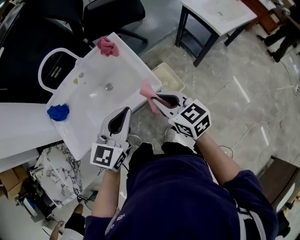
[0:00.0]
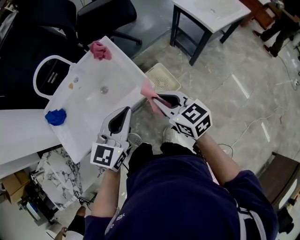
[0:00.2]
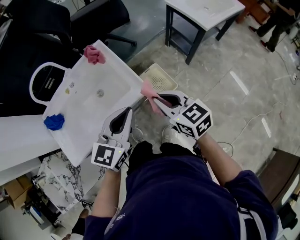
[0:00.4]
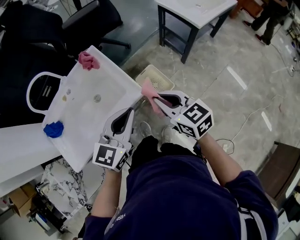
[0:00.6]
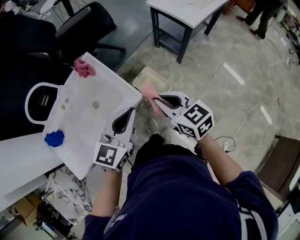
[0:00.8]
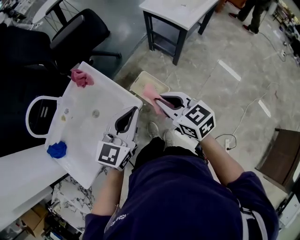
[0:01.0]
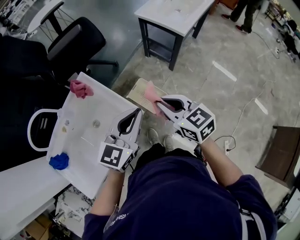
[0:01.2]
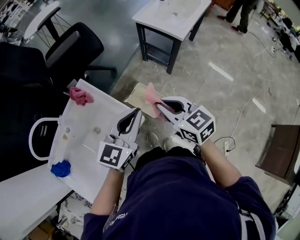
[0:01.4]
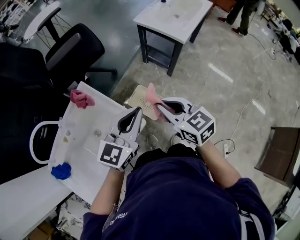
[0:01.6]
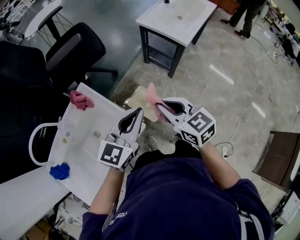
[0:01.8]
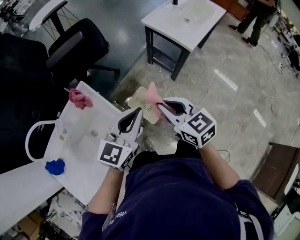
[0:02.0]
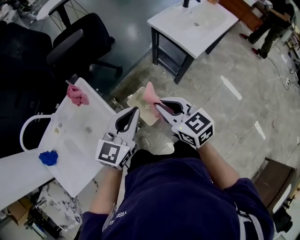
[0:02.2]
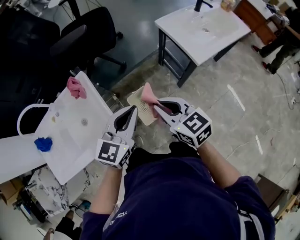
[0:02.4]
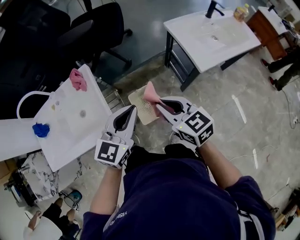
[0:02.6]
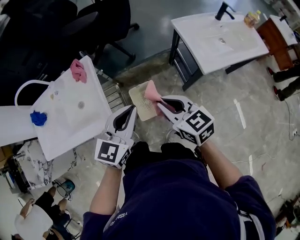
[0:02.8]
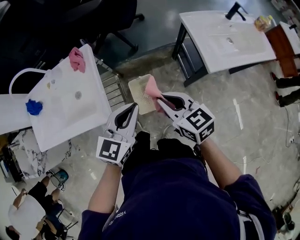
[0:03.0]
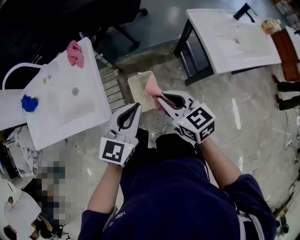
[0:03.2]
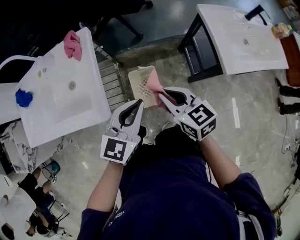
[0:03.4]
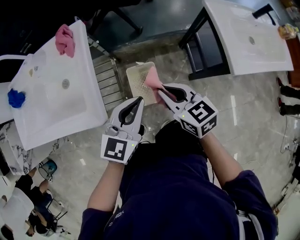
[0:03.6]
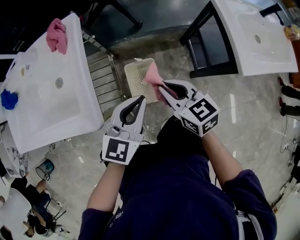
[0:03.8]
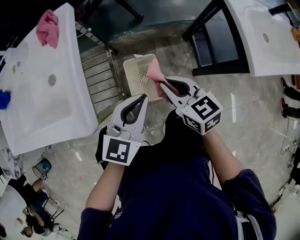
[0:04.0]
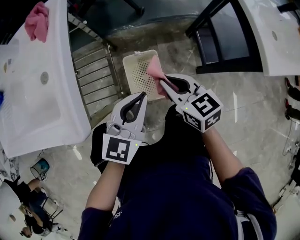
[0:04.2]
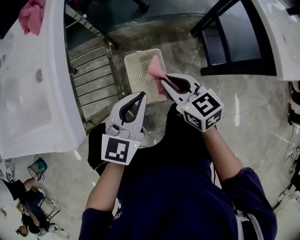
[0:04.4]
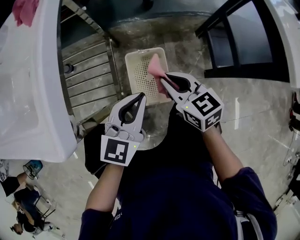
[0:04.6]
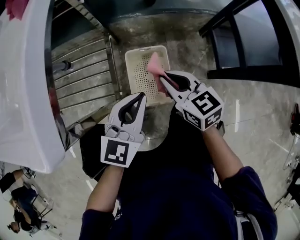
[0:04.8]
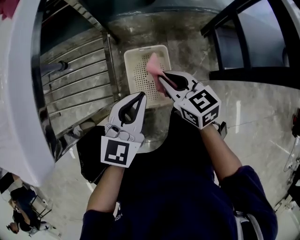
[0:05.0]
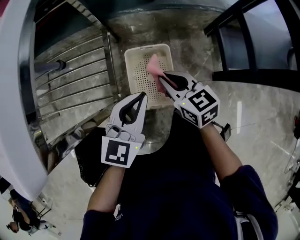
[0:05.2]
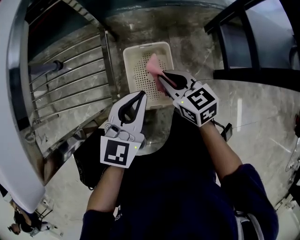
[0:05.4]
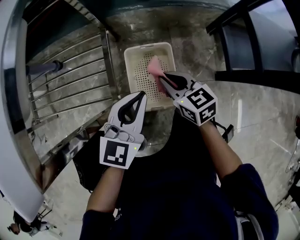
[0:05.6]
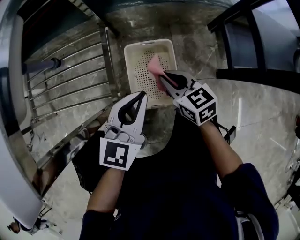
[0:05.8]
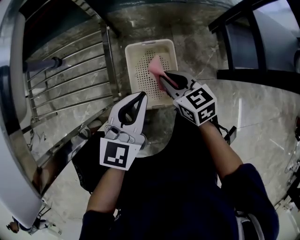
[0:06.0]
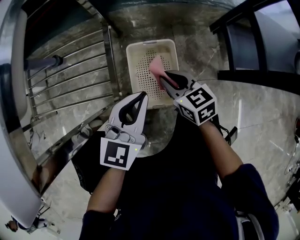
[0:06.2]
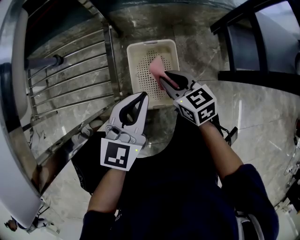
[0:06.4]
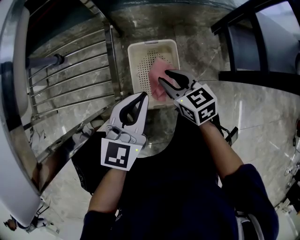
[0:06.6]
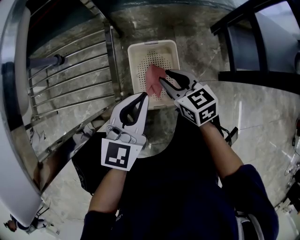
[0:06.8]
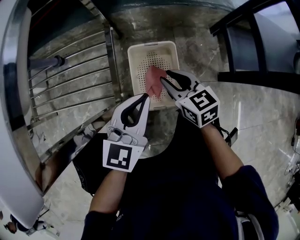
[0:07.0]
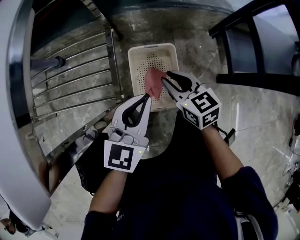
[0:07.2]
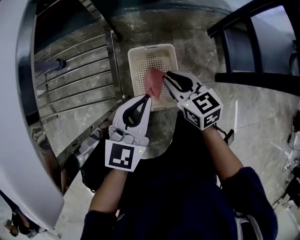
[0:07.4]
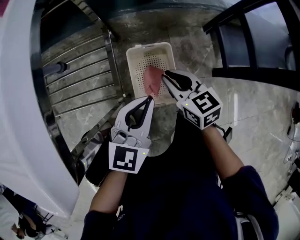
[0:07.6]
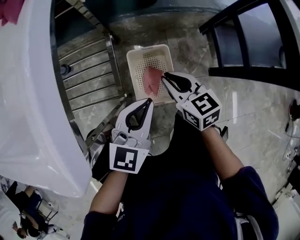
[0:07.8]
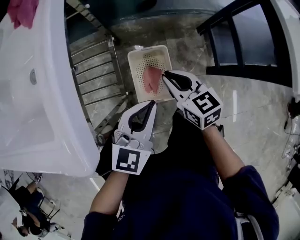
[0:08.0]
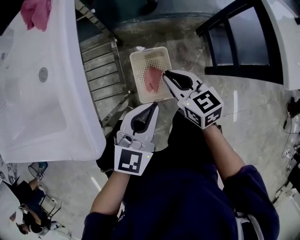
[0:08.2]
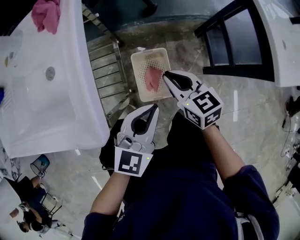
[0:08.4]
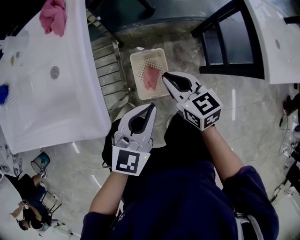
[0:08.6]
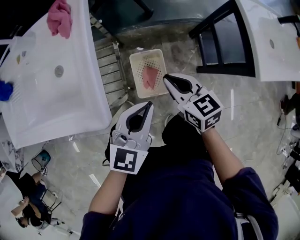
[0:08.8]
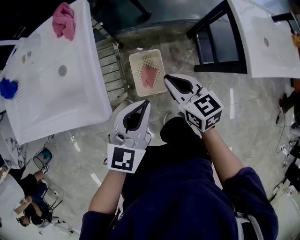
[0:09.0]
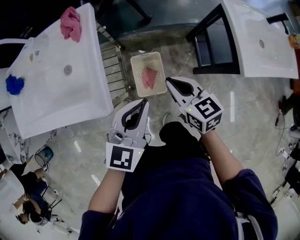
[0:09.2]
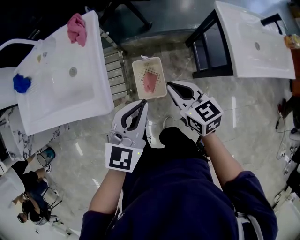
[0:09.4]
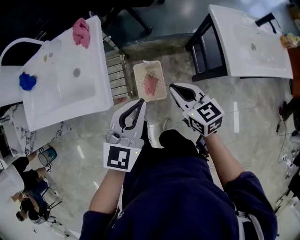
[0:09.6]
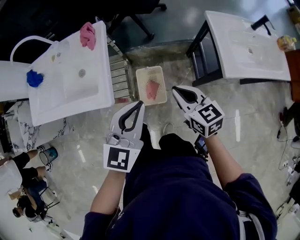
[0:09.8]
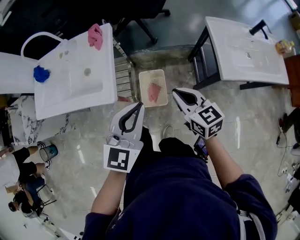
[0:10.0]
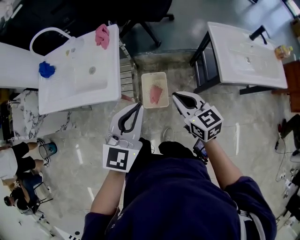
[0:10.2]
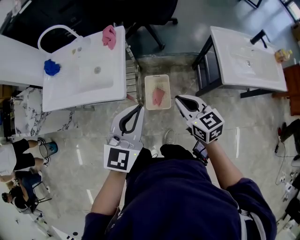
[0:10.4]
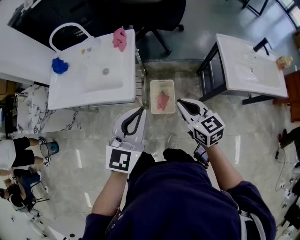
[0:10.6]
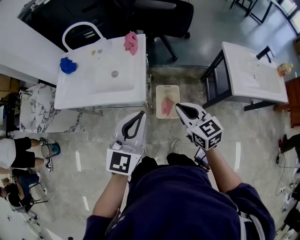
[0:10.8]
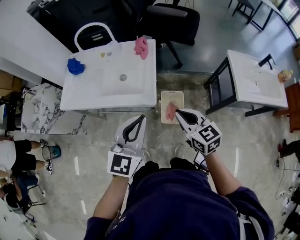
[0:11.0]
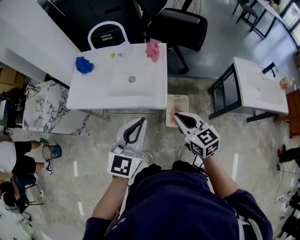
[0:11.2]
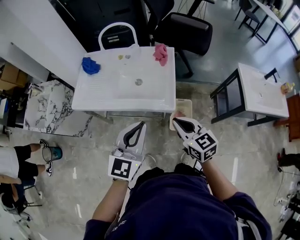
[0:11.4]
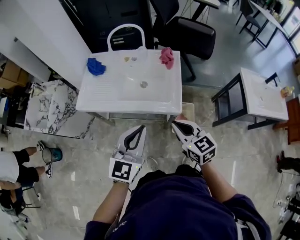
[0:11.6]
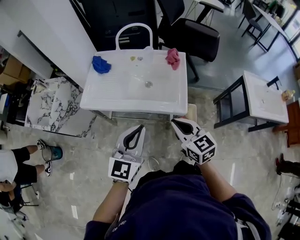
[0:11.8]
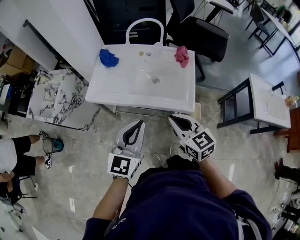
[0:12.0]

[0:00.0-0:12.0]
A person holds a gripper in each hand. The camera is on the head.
0:00.0 to 0:01.6: The right gripper moves to the right and forward, some 15 cm, and rotates roughly 20 degrees. Meanwhile the left gripper moves forward and to the right, some 20 cm, and turns by approximately 30 degrees.
0:01.6 to 0:03.0: The right gripper moves some 20 cm, and rotates approximately 40 degrees; the left gripper shifts by roughly 15 cm, and turns by about 40 degrees.
0:03.0 to 0:04.4: Both grippers travel together downward, about 35 cm.
0:04.4 to 0:06.0: The grippers both shift downward by approximately 20 cm.
0:06.0 to 0:07.6: The right gripper moves upward, roughly 5 cm.
0:07.6 to 0:09.0: The grippers both shift upward by about 30 cm.
0:09.0 to 0:10.4: The grippers both shift upward and backward by approximately 25 cm.
0:10.4 to 0:12.0: Both grippers travel together to the left, roughly 40 cm.

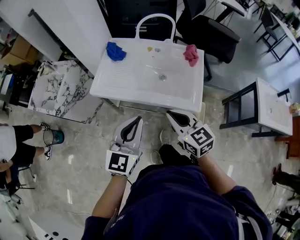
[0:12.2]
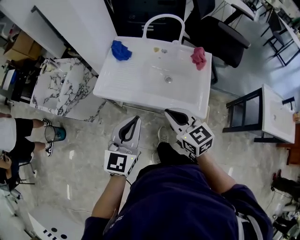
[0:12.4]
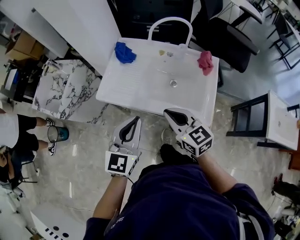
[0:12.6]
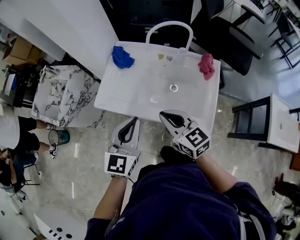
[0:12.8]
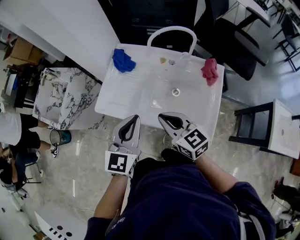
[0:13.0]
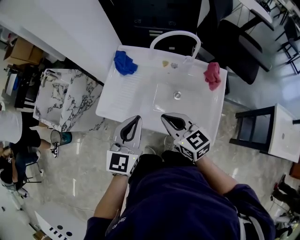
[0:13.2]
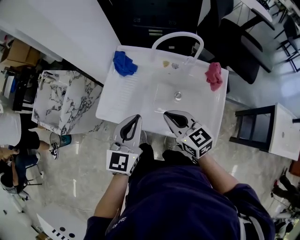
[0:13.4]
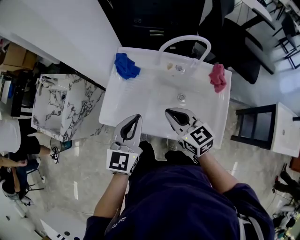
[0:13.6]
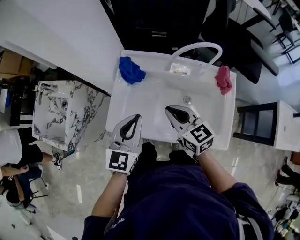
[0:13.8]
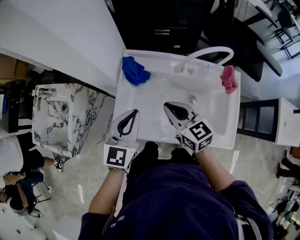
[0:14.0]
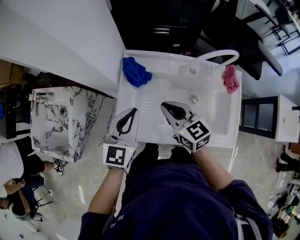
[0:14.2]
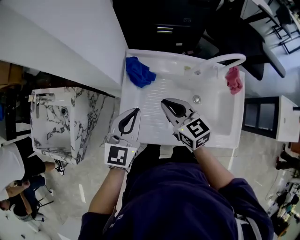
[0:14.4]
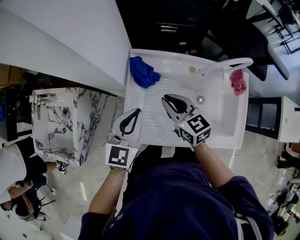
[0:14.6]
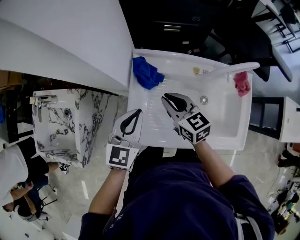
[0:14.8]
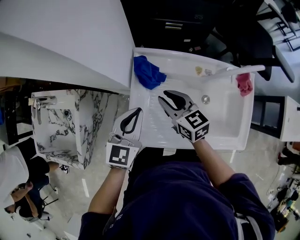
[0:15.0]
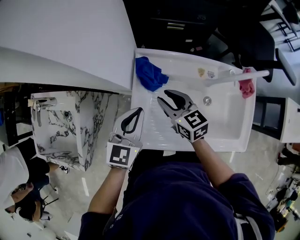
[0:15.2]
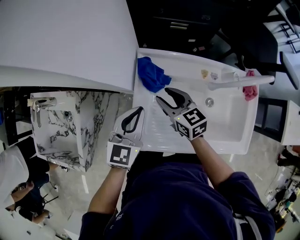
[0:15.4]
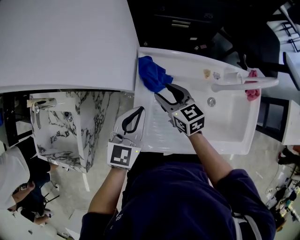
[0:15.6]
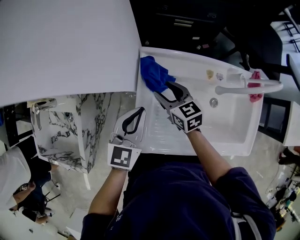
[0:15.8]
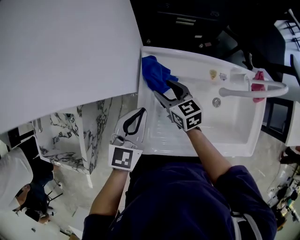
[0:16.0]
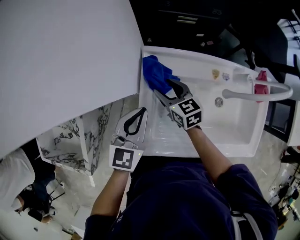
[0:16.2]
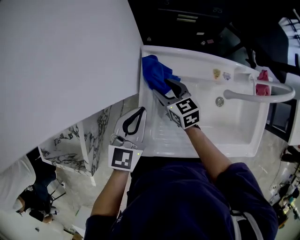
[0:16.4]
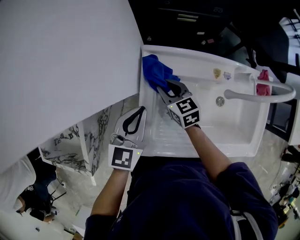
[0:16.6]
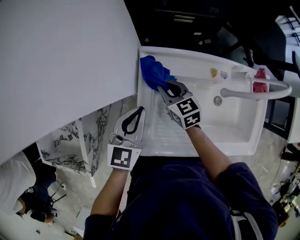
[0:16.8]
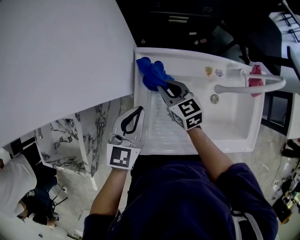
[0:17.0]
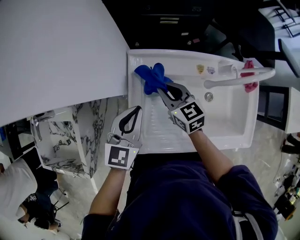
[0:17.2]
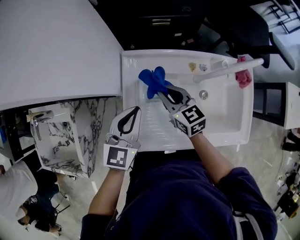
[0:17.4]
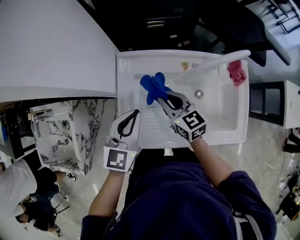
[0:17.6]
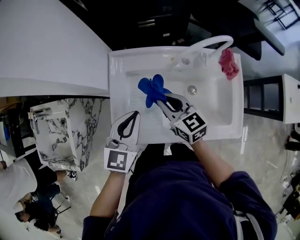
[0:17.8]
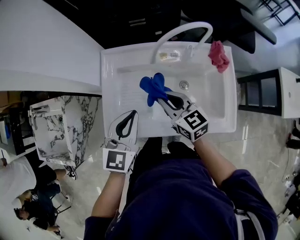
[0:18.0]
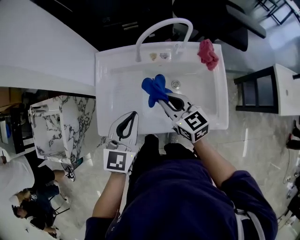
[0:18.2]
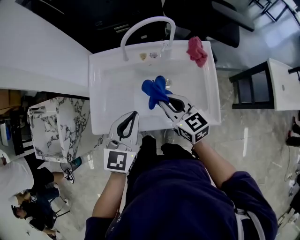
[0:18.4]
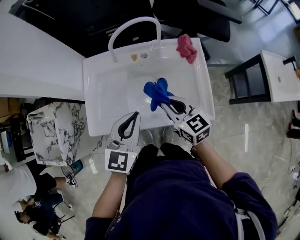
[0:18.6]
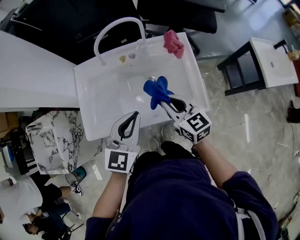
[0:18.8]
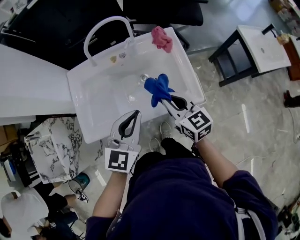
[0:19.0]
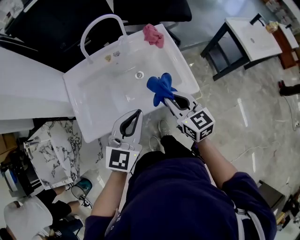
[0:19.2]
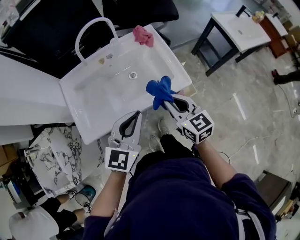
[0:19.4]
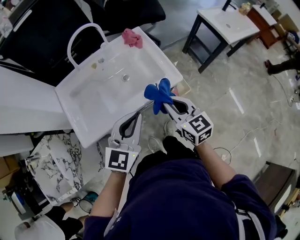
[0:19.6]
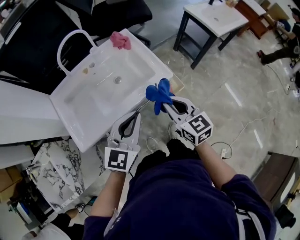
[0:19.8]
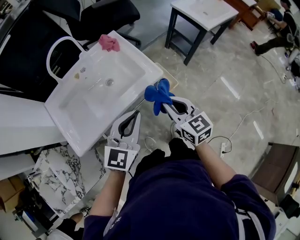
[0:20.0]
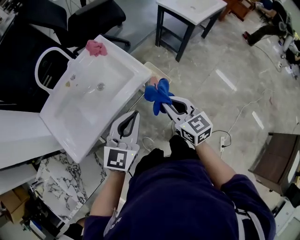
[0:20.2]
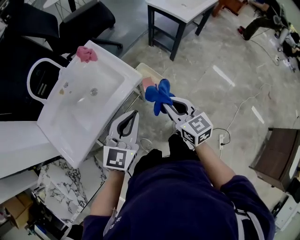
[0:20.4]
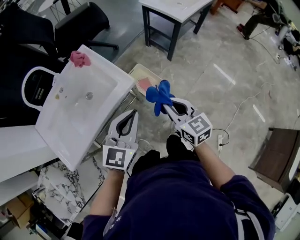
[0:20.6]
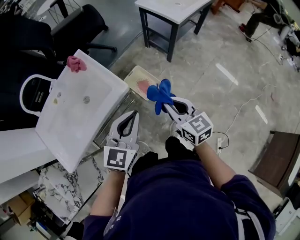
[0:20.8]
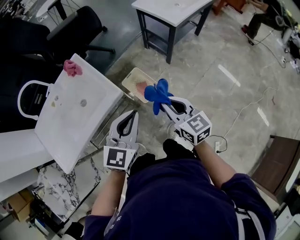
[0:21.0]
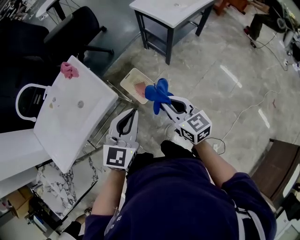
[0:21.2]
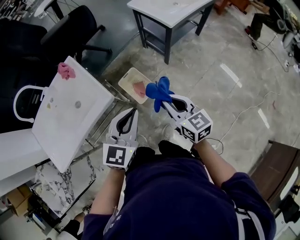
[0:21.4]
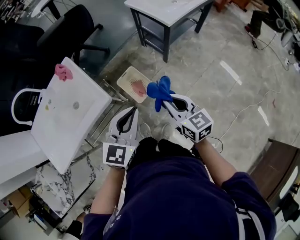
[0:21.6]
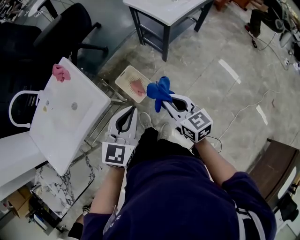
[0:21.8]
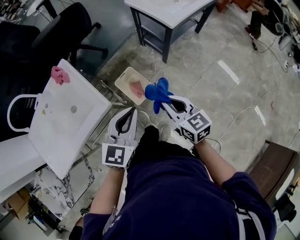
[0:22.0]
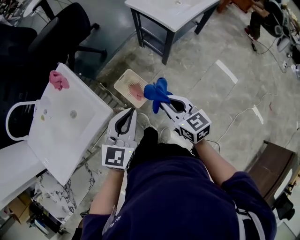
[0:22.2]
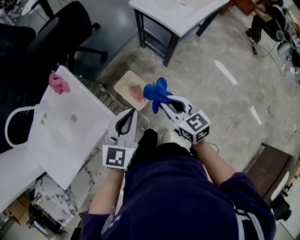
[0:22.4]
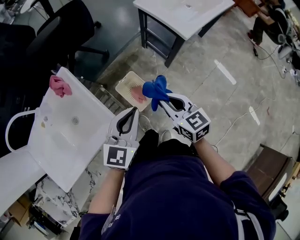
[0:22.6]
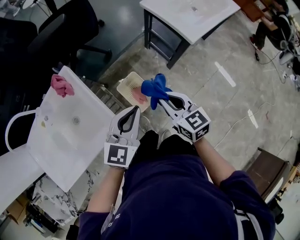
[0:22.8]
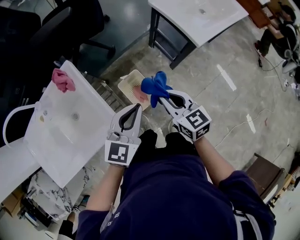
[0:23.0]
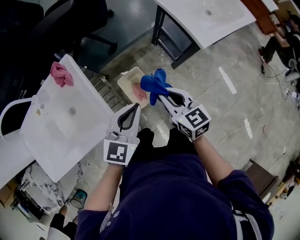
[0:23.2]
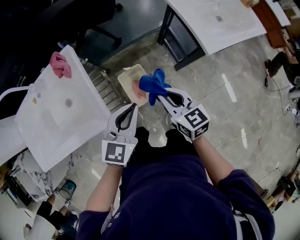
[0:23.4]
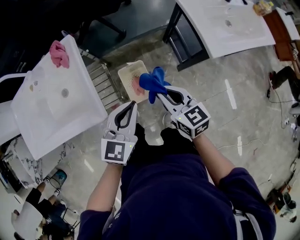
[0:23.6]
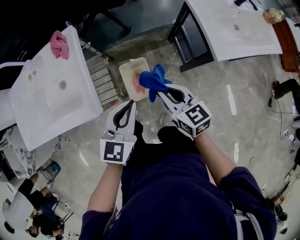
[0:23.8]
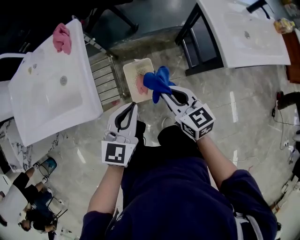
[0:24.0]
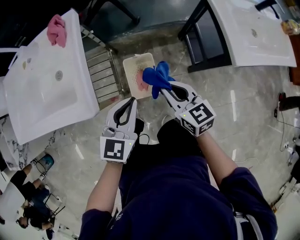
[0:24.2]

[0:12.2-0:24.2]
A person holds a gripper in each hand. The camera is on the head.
0:12.2 to 0:13.8: The two grippers go approximately 30 cm forward.
0:13.8 to 0:15.2: Both grippers move forward, to the left and downward, roughly 20 cm. The right gripper opens.
0:15.2 to 0:16.6: The left gripper ends up some 5 cm from where it was, while the right gripper goes roughly 10 cm downward and forward, and opens and closes again.
0:16.6 to 0:18.2: The two grippers go some 30 cm to the right, backward and upward.
0:18.2 to 0:19.8: The left gripper ends up approximately 25 cm from where it was, and turns by about 40 degrees. Meanwhile the right gripper changes place by roughly 30 cm, and turns by some 40 degrees.
0:19.8 to 0:21.2: The two grippers go roughly 30 cm to the right.
0:21.2 to 0:22.6: Both grippers move forward, roughly 20 cm.
0:22.6 to 0:24.2: Both grippers move downward, some 15 cm. The right gripper turns by some 30 degrees. Meanwhile the left gripper swivels about 30 degrees.
